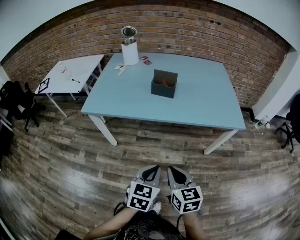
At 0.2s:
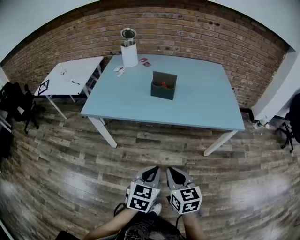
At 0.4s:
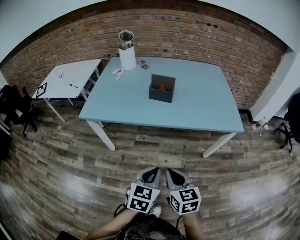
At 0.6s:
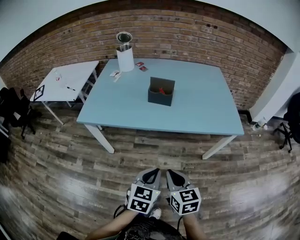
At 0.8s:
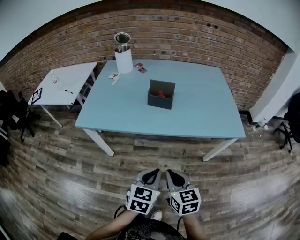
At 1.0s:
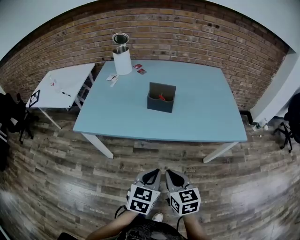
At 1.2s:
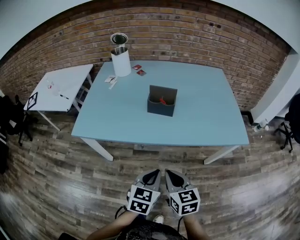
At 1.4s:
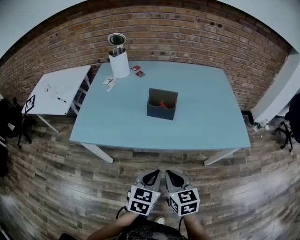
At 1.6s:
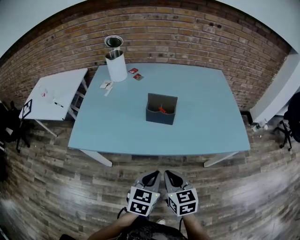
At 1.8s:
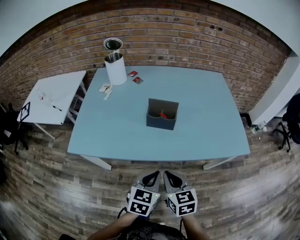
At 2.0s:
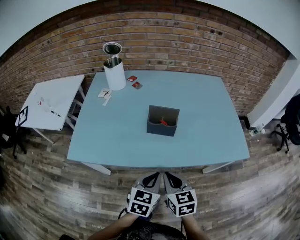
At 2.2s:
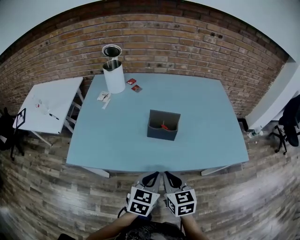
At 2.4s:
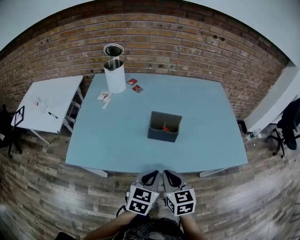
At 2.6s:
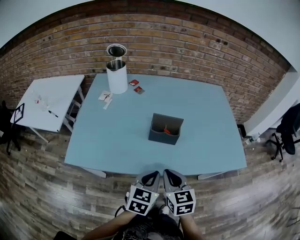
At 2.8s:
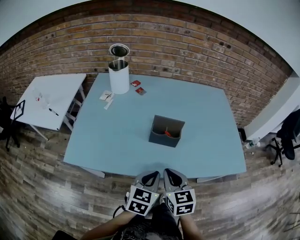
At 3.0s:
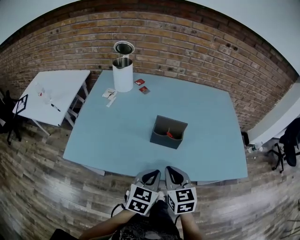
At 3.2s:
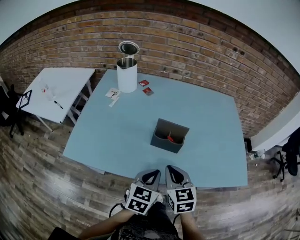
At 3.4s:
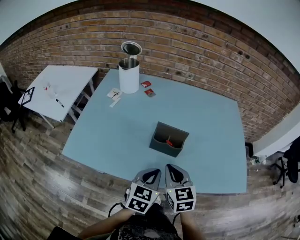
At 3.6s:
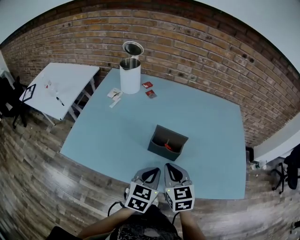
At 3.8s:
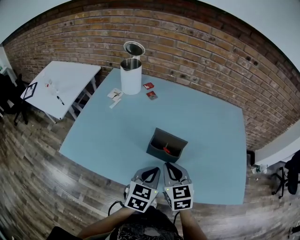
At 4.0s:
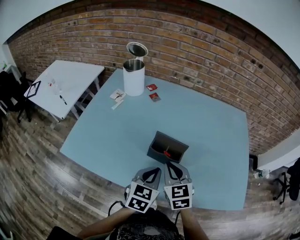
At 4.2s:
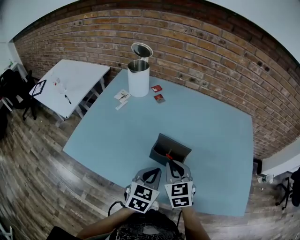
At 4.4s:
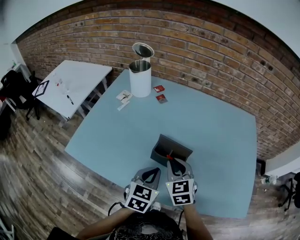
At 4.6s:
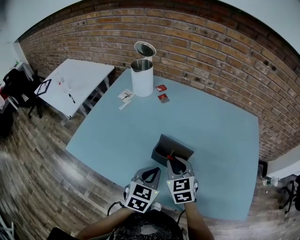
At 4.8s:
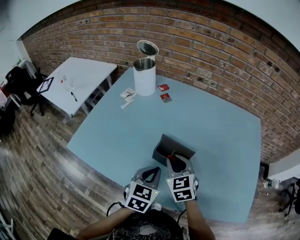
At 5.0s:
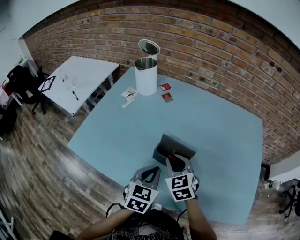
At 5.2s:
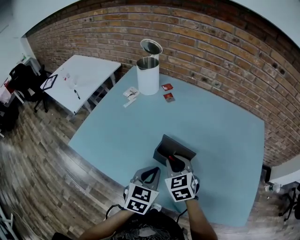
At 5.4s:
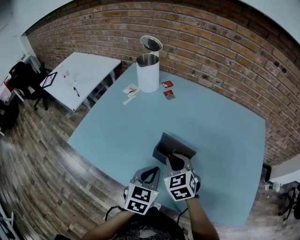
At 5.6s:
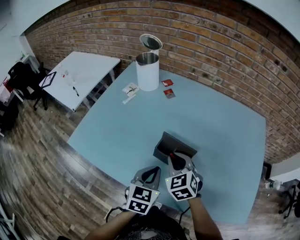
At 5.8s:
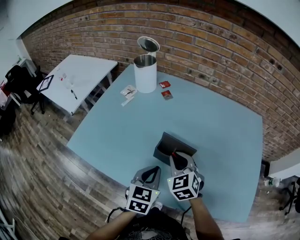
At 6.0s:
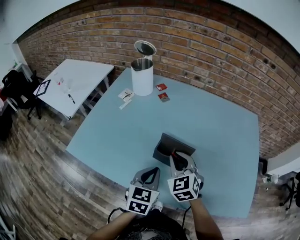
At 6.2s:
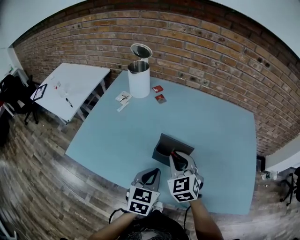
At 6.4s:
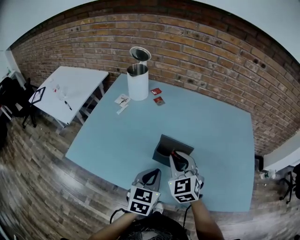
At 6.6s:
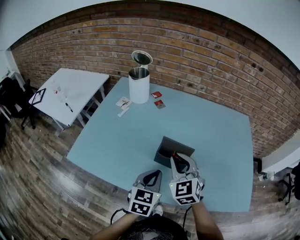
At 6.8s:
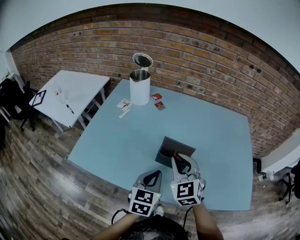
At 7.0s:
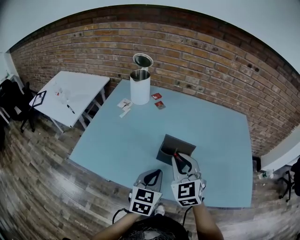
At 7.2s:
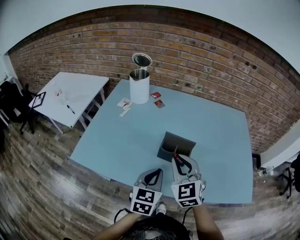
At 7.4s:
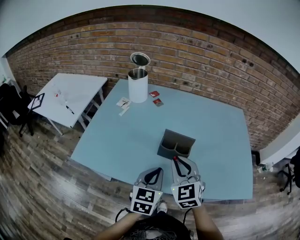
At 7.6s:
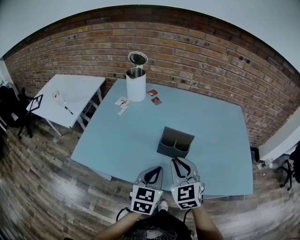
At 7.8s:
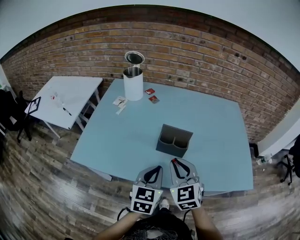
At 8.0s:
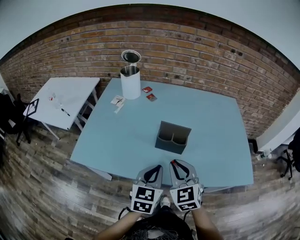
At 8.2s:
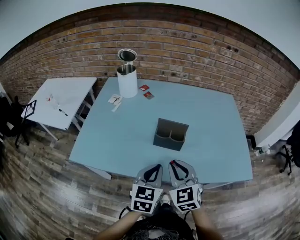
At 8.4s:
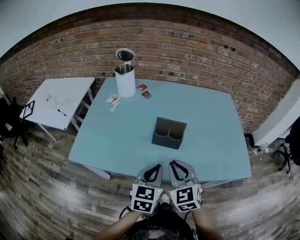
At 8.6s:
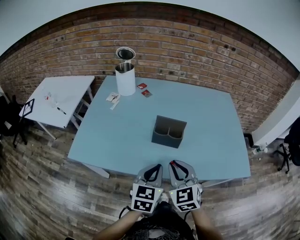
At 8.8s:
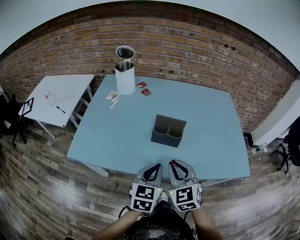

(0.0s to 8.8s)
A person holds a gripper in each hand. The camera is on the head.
0.0s - 1.4s: The two grippers go some 15 cm forward.
1.4s - 3.0s: Both grippers move forward, some 15 cm.
3.0s - 4.4s: Both grippers move forward, some 15 cm. The right gripper changes its angle by some 20 degrees.
4.4s - 5.8s: The grippers stay close to where they were, moving slightly.
5.8s - 7.4s: The right gripper is displaced upward and backward by approximately 10 cm. The left gripper shifts approximately 5 cm backward.
7.4s - 8.8s: The left gripper moves backward, approximately 5 cm. The right gripper shifts about 10 cm backward.

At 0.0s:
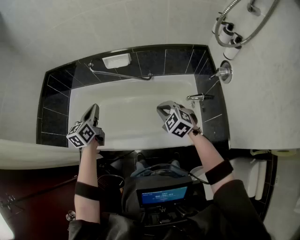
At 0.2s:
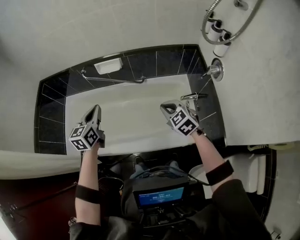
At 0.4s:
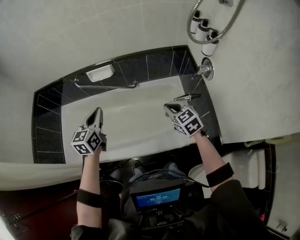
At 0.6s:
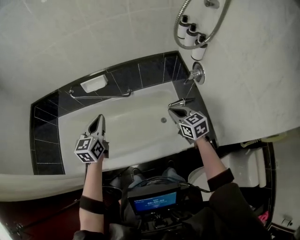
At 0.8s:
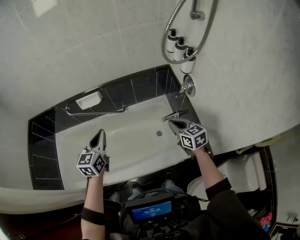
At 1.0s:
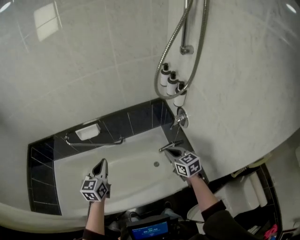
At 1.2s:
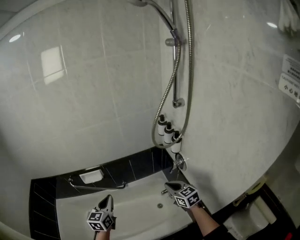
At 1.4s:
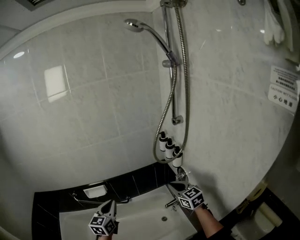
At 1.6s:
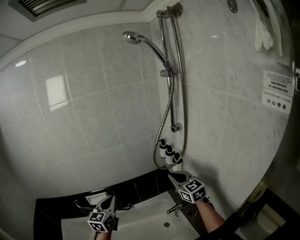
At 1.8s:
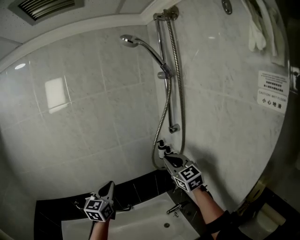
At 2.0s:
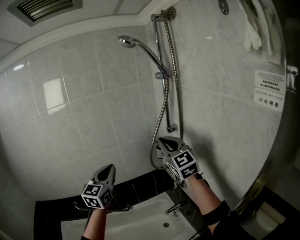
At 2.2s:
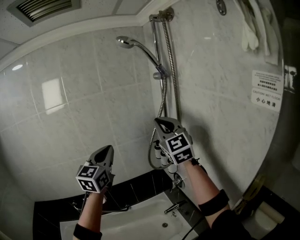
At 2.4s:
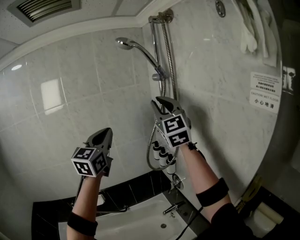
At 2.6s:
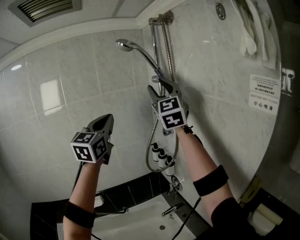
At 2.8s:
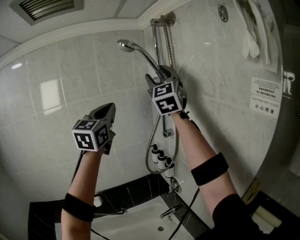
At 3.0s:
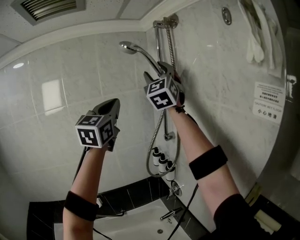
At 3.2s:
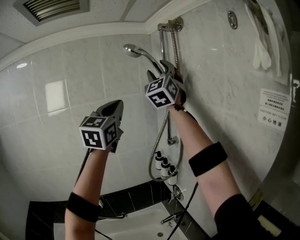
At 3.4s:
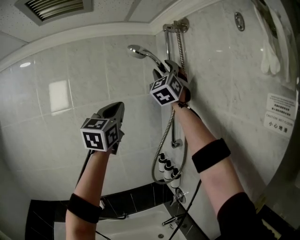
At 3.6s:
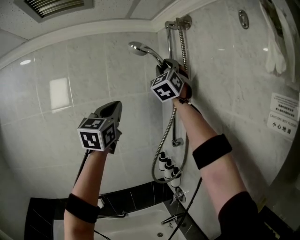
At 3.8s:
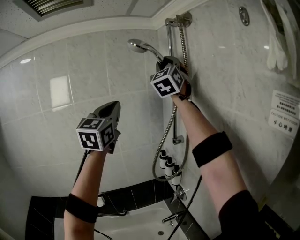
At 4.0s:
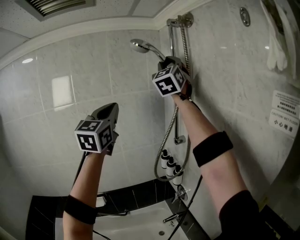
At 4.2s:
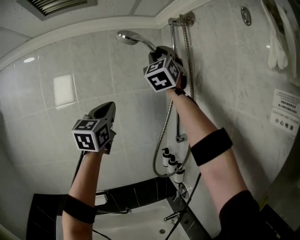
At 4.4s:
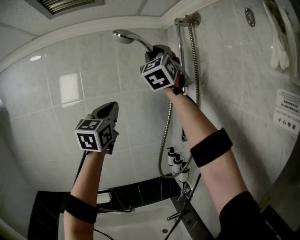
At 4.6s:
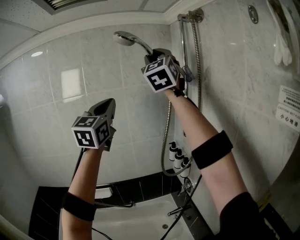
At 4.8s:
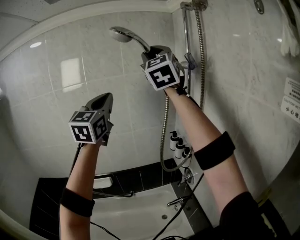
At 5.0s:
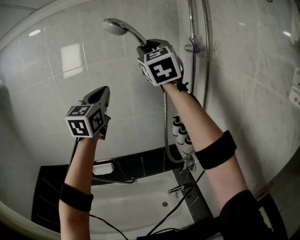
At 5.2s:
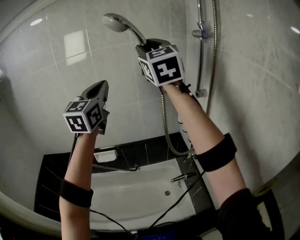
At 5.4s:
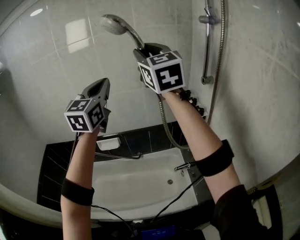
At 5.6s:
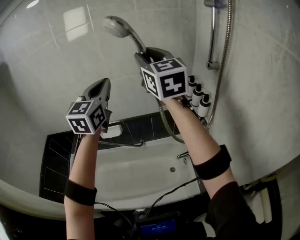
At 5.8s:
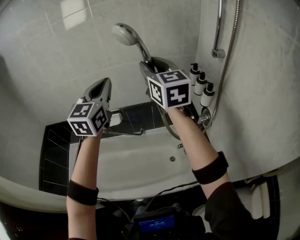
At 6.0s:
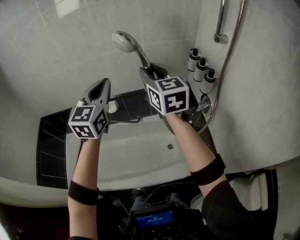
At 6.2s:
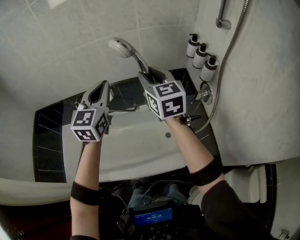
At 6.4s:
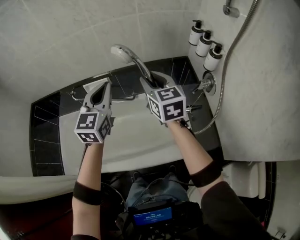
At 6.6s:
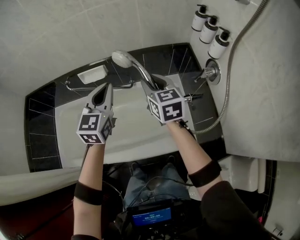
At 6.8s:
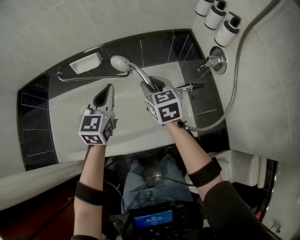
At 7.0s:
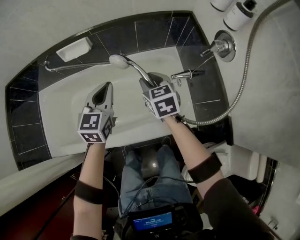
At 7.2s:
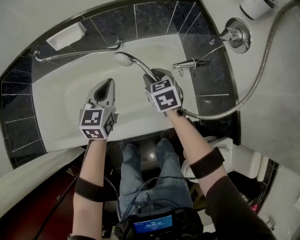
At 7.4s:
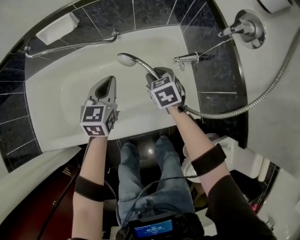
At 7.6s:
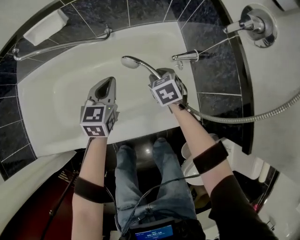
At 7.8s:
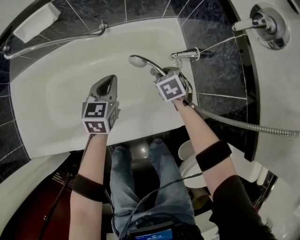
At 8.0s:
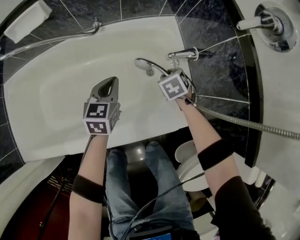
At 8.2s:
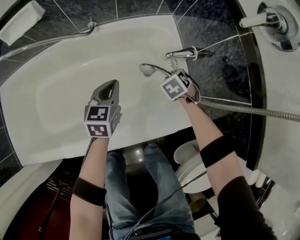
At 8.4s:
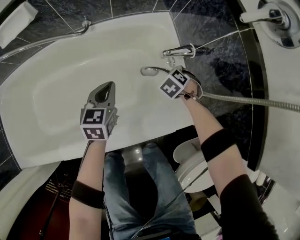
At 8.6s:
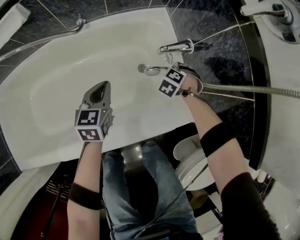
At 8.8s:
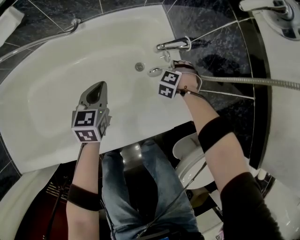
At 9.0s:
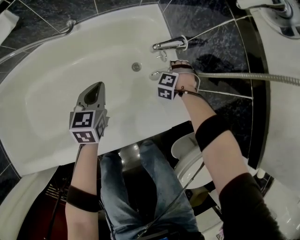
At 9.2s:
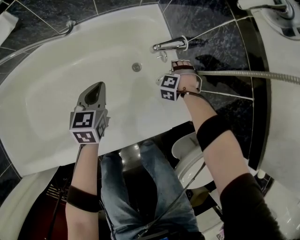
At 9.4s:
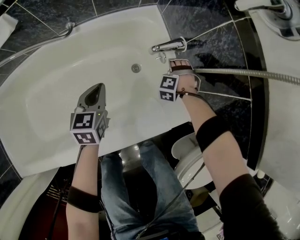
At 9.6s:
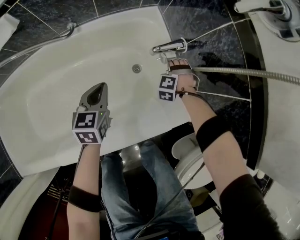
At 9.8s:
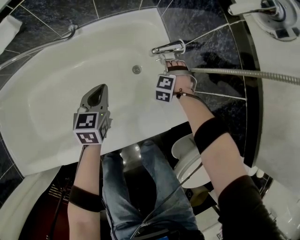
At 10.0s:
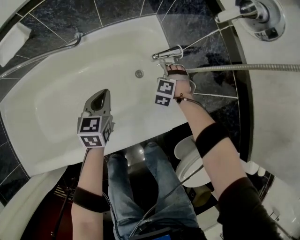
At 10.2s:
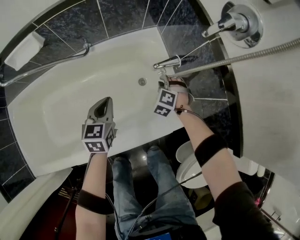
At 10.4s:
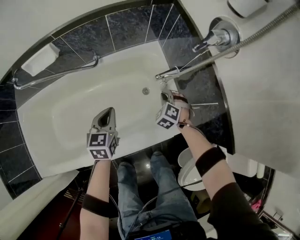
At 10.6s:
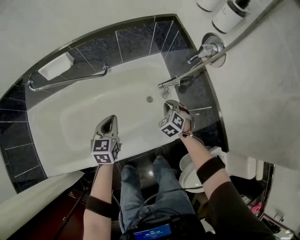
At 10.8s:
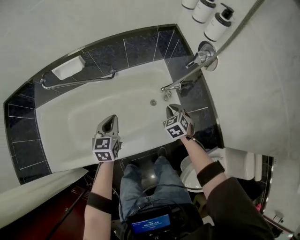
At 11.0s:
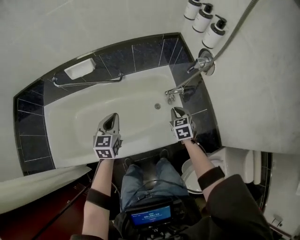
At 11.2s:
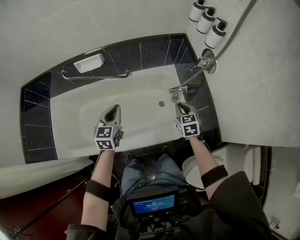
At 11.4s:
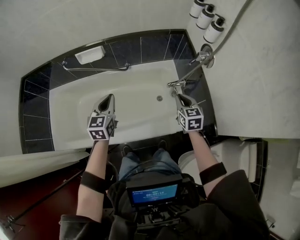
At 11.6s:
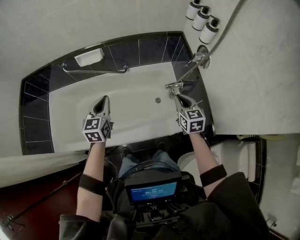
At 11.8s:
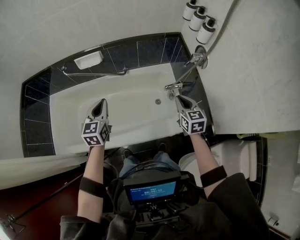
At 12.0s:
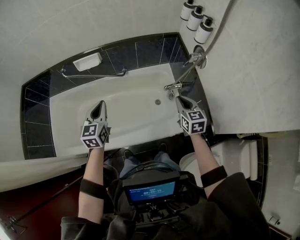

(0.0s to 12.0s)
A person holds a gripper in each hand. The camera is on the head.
0.0s - 1.6s: The right gripper moves upward, approximately 30 cm, and angles its fingers upward, by some 40 degrees. Meanwhile the left gripper moves about 35 cm, and changes its angle by some 40 degrees.
1.6s - 3.0s: The grippers both shift upward by about 50 cm. The left gripper swivels roughly 30 degrees. Meanwhile the right gripper angles its fingers upward, by some 40 degrees, and opens its fingers.
3.0s - 4.4s: The right gripper goes some 10 cm to the left and upward, and closes up; the left gripper heads to the left, covering approximately 10 cm.
4.4s - 6.0s: The right gripper heads downward, covering approximately 50 cm, and points its fingers about 30 degrees further downward, while the left gripper moves downward, some 35 cm, and rotates about 20 degrees.
6.0s - 7.6s: Both grippers move downward, roughly 70 cm. The right gripper angles its fingers downward, by about 50 degrees; the left gripper turns by roughly 30 degrees.
7.6s - 9.0s: The grippers both shift downward by some 20 cm. The right gripper twists about 60 degrees counterclockwise, seen from behind.
9.0s - 10.4s: The two grippers go roughly 20 cm upward. The right gripper rotates approximately 40 degrees, and closes.
10.4s - 12.0s: Both grippers move upward, approximately 30 cm. The right gripper rolls clockwise, seen from behind, by some 50 degrees. The left gripper rotates some 20 degrees.

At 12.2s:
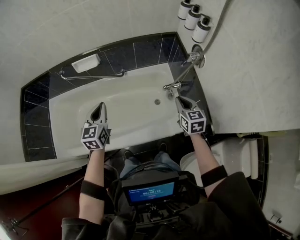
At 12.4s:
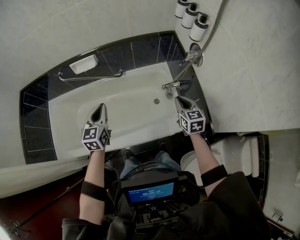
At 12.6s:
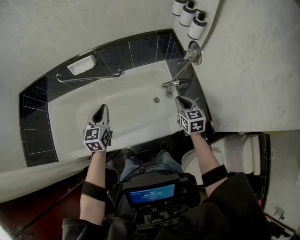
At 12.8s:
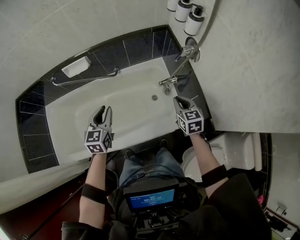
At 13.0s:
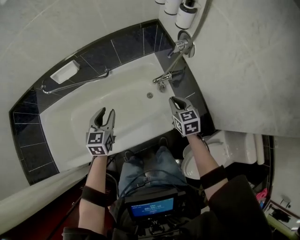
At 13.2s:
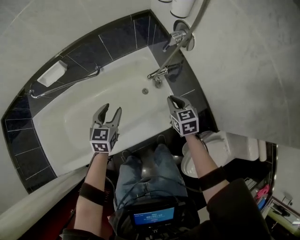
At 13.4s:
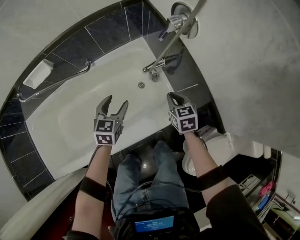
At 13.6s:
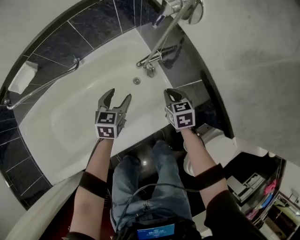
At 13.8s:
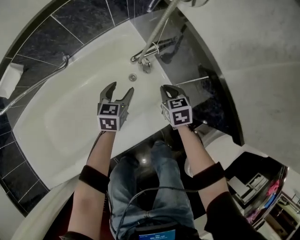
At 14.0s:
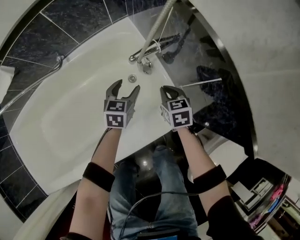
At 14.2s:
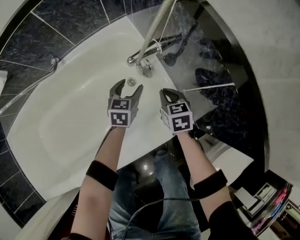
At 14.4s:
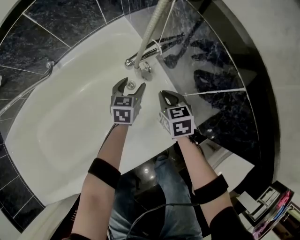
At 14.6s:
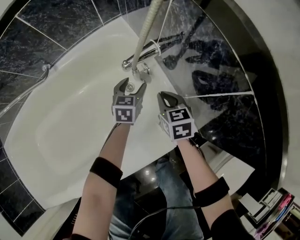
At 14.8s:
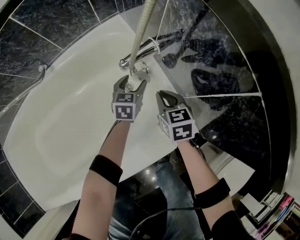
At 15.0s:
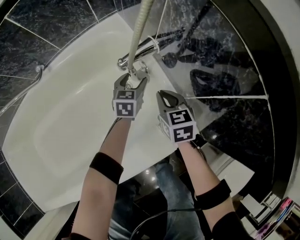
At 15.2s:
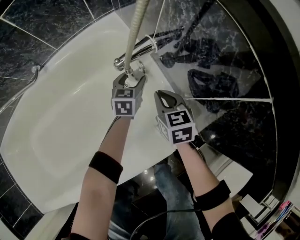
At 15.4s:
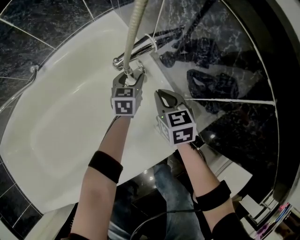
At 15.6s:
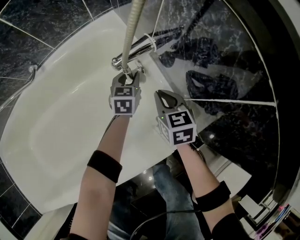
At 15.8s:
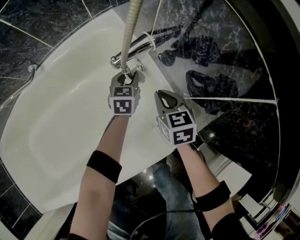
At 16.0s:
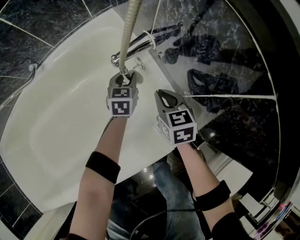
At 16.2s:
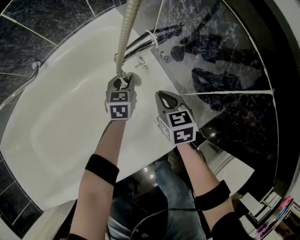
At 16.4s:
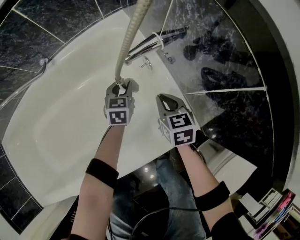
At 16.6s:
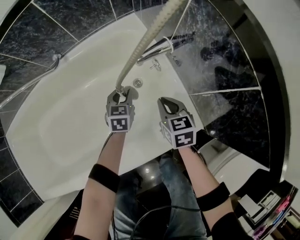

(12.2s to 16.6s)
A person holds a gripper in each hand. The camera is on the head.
12.2s - 13.6s: The right gripper goes some 30 cm downward, and swivels about 20 degrees. Meanwhile the left gripper moves downward and to the right, about 40 cm, changes its angle by some 40 degrees, and opens up.
13.6s - 15.2s: The right gripper moves downward, roughly 20 cm; the left gripper is displaced downward and forward by approximately 35 cm.
15.2s - 16.6s: The right gripper goes approximately 5 cm backward and to the left. Meanwhile the left gripper moves to the left and backward, some 15 cm, and closes up.
